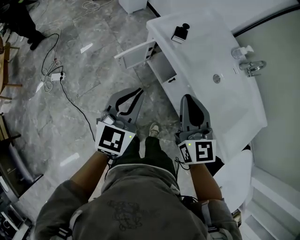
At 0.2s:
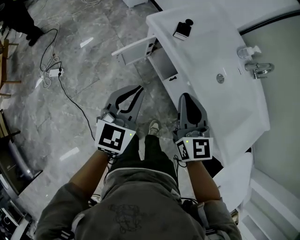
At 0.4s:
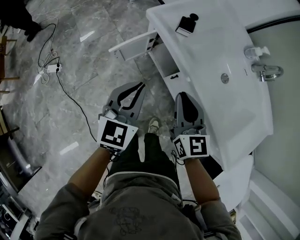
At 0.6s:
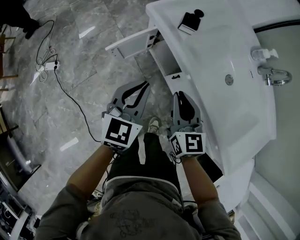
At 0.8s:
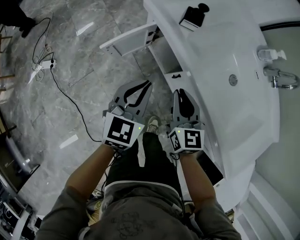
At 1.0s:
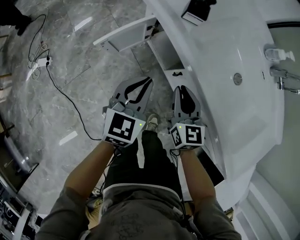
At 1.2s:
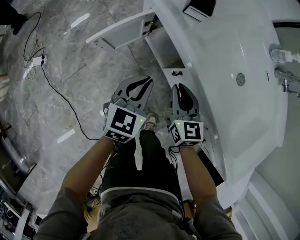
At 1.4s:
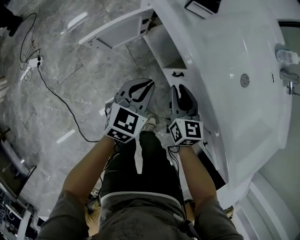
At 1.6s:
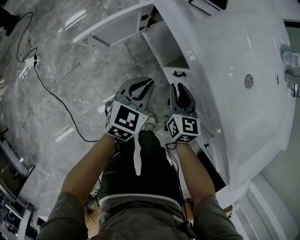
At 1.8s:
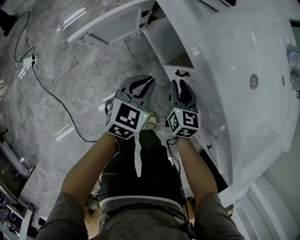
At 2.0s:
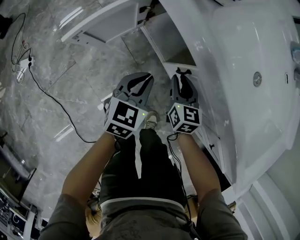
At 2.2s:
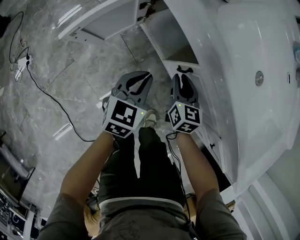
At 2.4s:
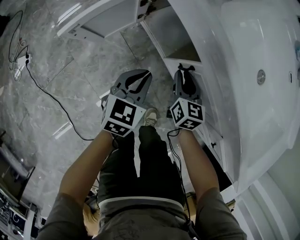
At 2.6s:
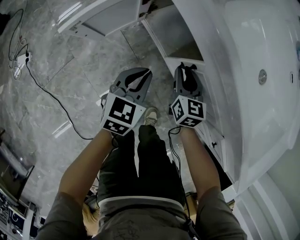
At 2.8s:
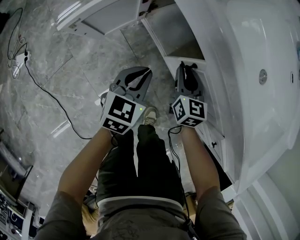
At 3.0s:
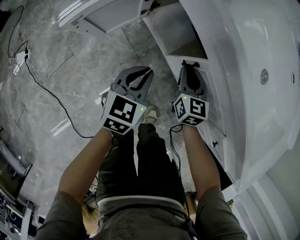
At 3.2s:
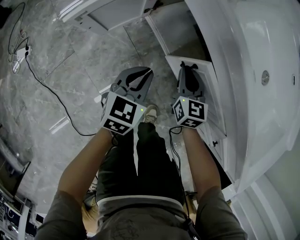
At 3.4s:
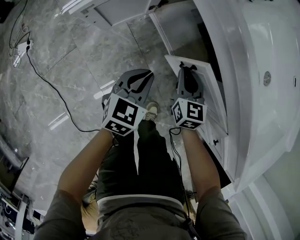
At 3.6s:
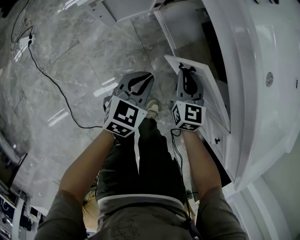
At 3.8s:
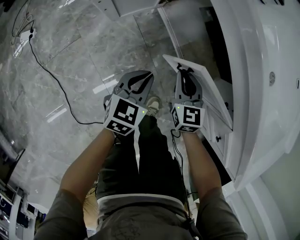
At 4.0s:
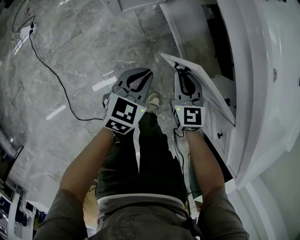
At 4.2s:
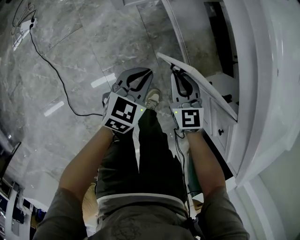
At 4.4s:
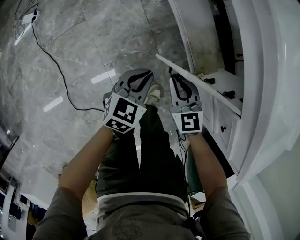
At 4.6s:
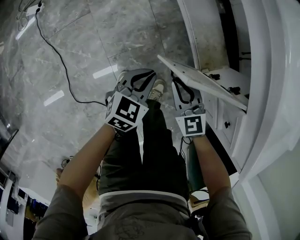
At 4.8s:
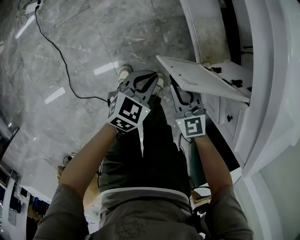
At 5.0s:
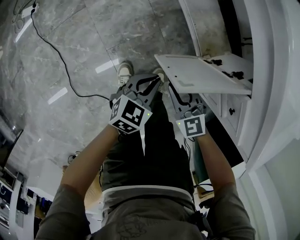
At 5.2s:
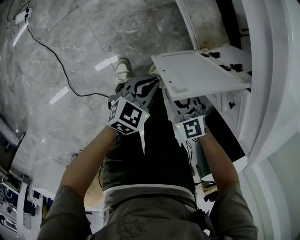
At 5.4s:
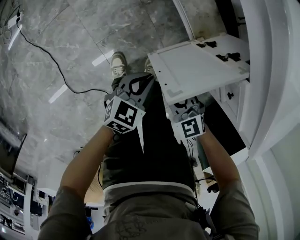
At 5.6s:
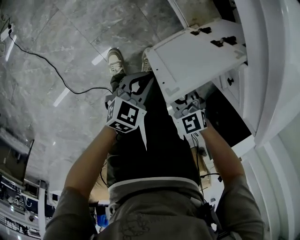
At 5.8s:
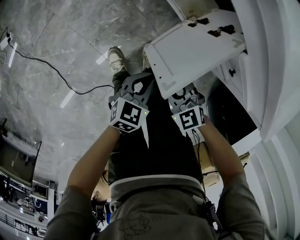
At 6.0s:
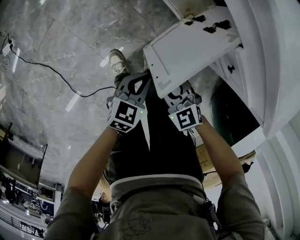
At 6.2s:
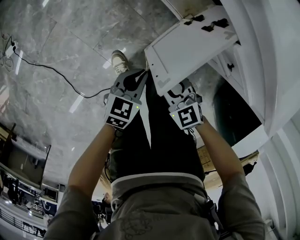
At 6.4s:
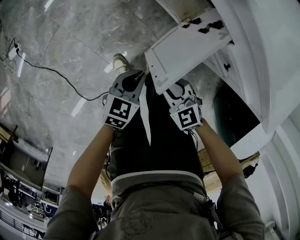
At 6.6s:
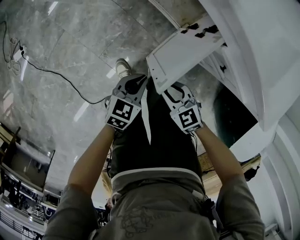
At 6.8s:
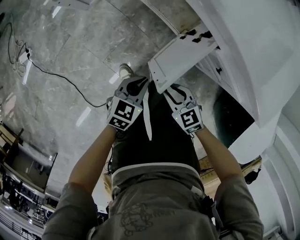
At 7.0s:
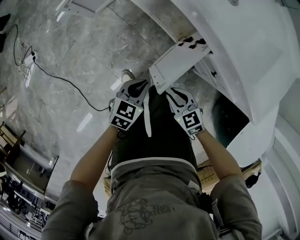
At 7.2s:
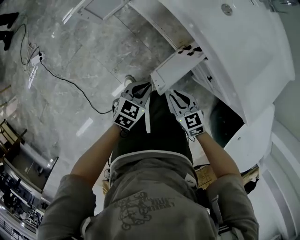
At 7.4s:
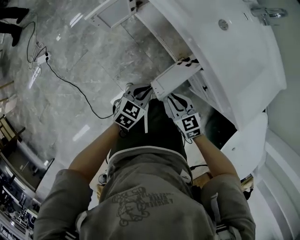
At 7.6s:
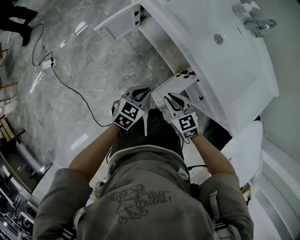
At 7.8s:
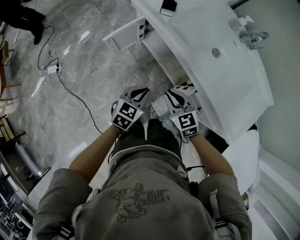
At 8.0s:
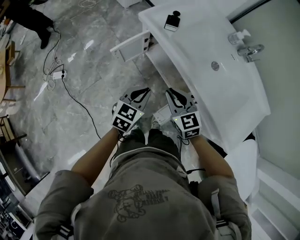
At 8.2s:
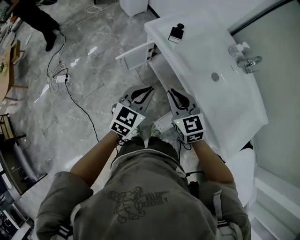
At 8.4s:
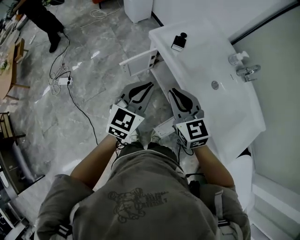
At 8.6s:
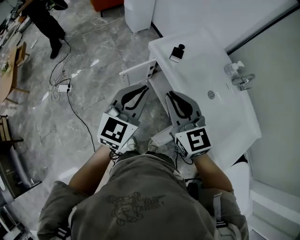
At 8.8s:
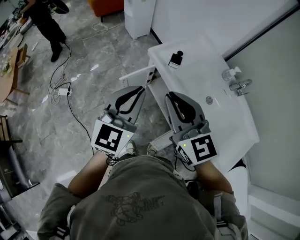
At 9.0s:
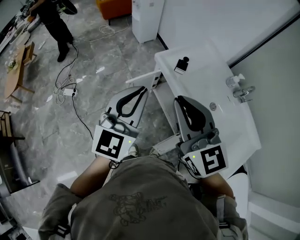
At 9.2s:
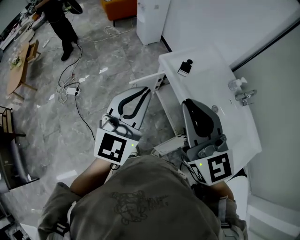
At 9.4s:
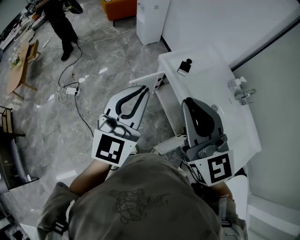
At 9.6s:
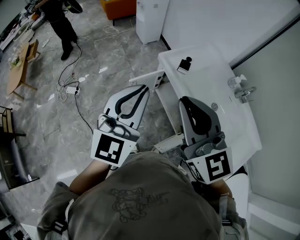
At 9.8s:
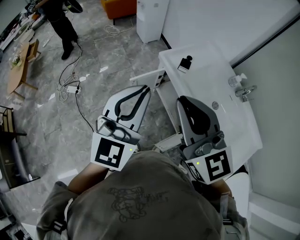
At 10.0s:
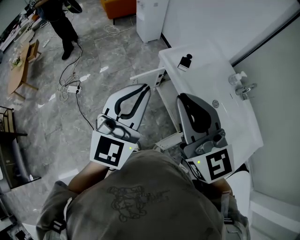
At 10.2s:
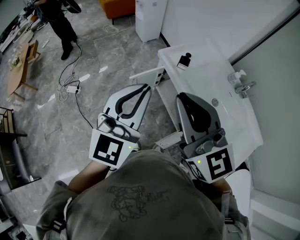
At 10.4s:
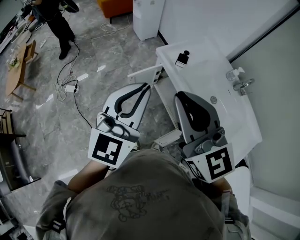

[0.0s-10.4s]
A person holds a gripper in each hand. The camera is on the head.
0.0s to 1.4s: The grippers both shift downward by roughly 35 cm. The left gripper rotates roughly 20 degrees. The right gripper turns by approximately 20 degrees.
1.4s to 3.0s: Both grippers travel together downward, some 10 cm.
3.0s to 4.4s: The grippers both shift backward by approximately 20 cm. The right gripper changes its angle by about 40 degrees.
4.4s to 6.0s: The right gripper shifts approximately 20 cm backward; the left gripper moves backward and to the right, some 20 cm, and rotates some 20 degrees.
6.0s to 7.4s: Both grippers travel together upward, roughly 20 cm.
7.4s to 9.0s: Both grippers travel together upward, some 50 cm. The right gripper angles its fingers upward, by approximately 40 degrees, while the left gripper tips its fingers upward by approximately 40 degrees.
9.0s to 10.4s: Both grippers travel together backward, some 5 cm.

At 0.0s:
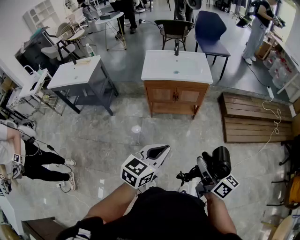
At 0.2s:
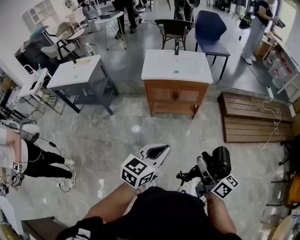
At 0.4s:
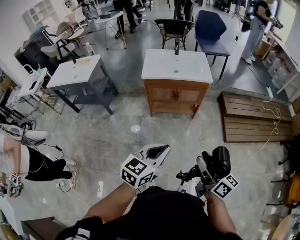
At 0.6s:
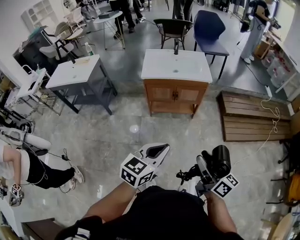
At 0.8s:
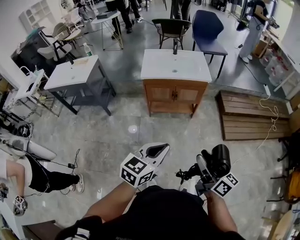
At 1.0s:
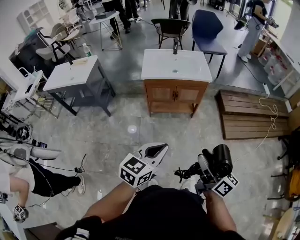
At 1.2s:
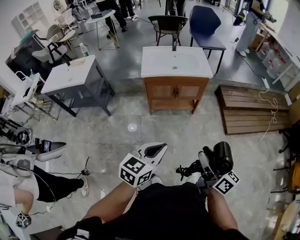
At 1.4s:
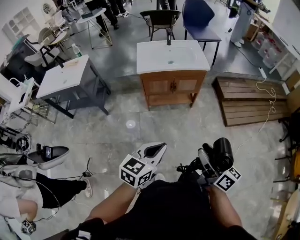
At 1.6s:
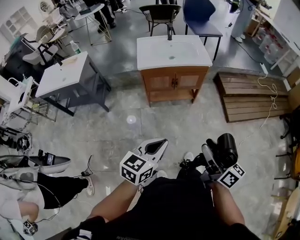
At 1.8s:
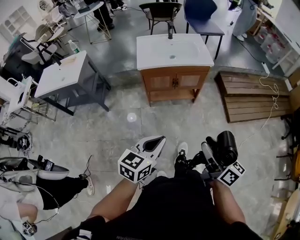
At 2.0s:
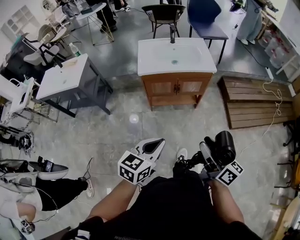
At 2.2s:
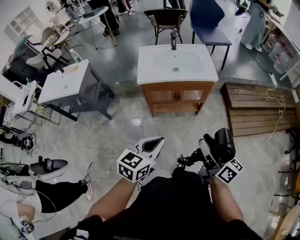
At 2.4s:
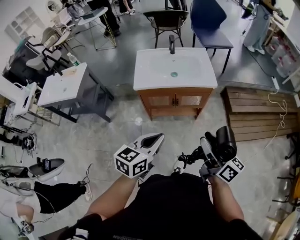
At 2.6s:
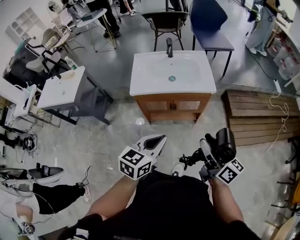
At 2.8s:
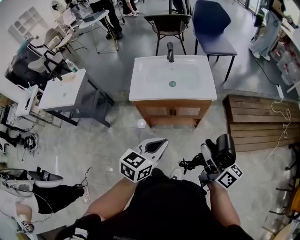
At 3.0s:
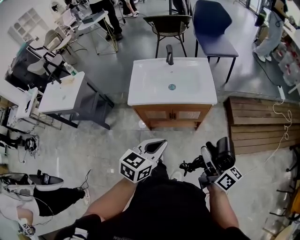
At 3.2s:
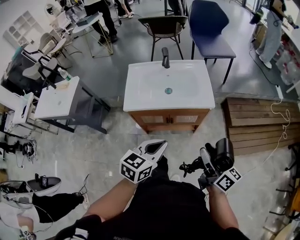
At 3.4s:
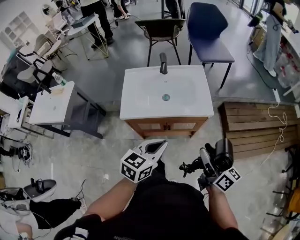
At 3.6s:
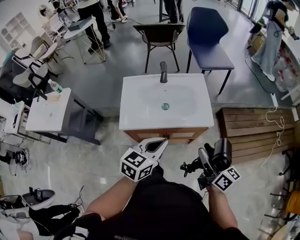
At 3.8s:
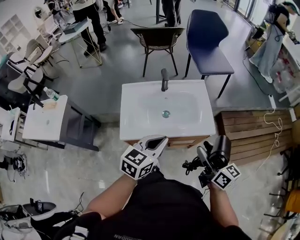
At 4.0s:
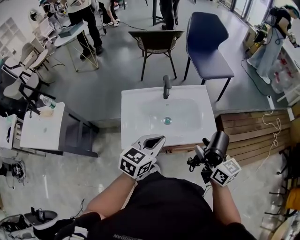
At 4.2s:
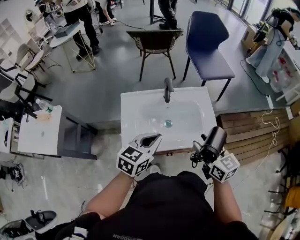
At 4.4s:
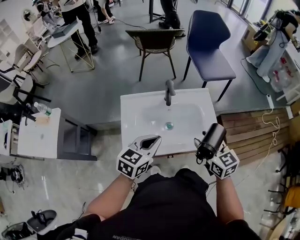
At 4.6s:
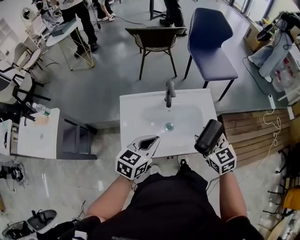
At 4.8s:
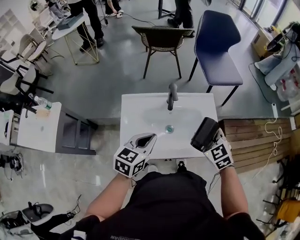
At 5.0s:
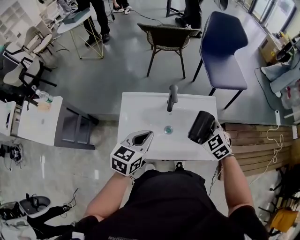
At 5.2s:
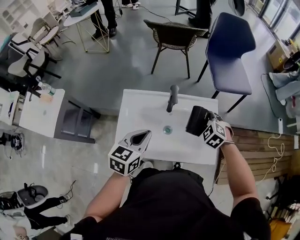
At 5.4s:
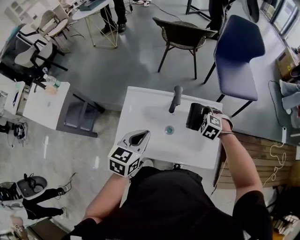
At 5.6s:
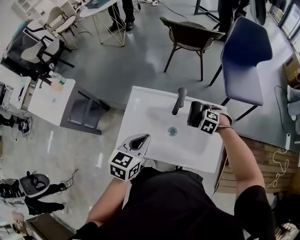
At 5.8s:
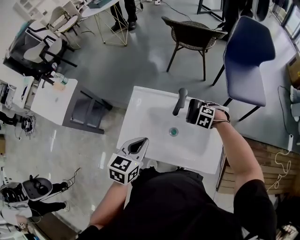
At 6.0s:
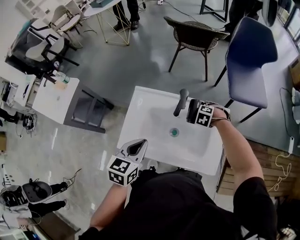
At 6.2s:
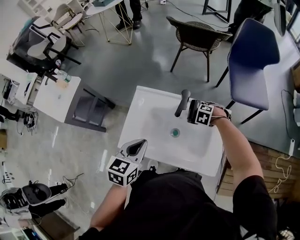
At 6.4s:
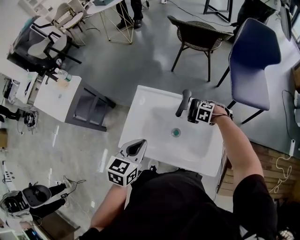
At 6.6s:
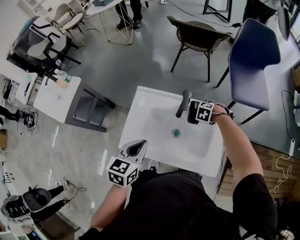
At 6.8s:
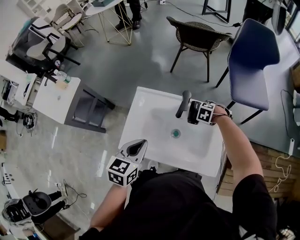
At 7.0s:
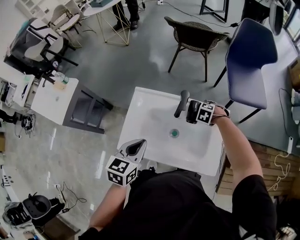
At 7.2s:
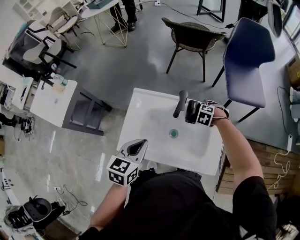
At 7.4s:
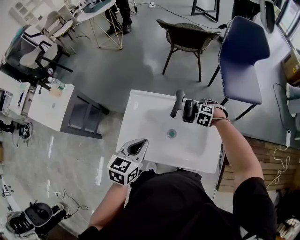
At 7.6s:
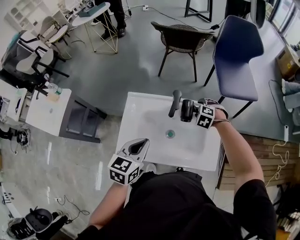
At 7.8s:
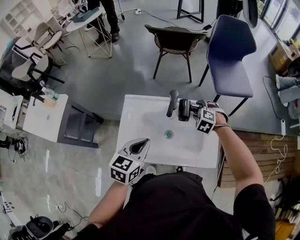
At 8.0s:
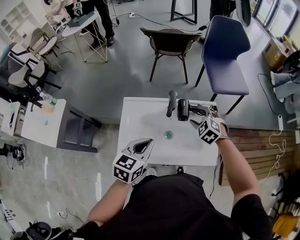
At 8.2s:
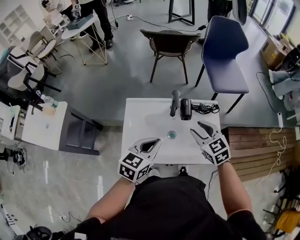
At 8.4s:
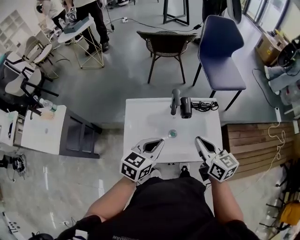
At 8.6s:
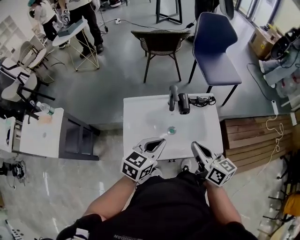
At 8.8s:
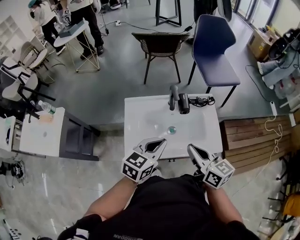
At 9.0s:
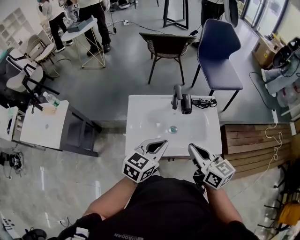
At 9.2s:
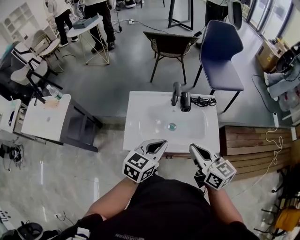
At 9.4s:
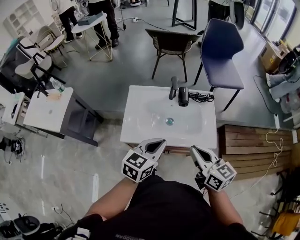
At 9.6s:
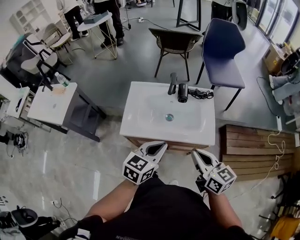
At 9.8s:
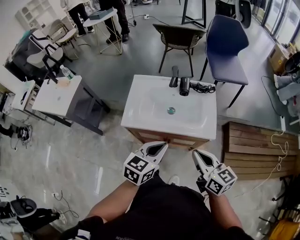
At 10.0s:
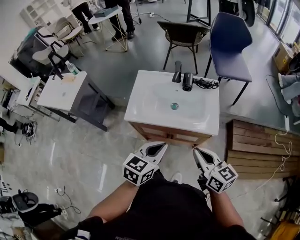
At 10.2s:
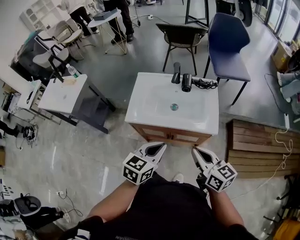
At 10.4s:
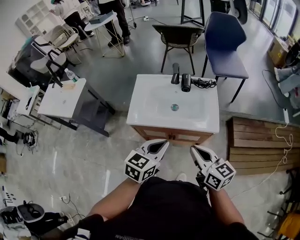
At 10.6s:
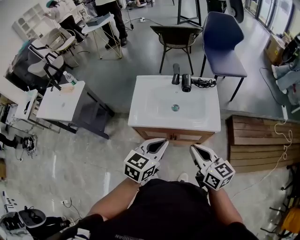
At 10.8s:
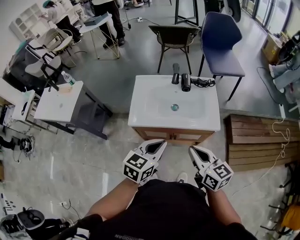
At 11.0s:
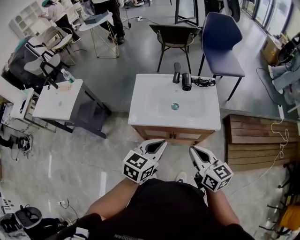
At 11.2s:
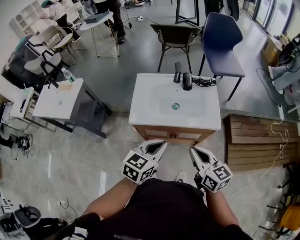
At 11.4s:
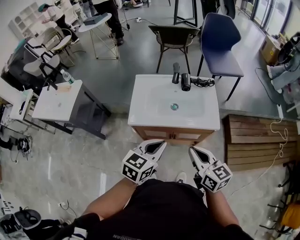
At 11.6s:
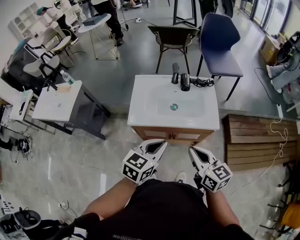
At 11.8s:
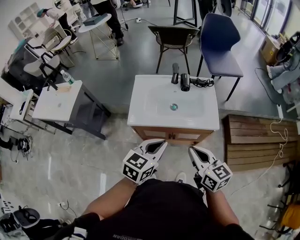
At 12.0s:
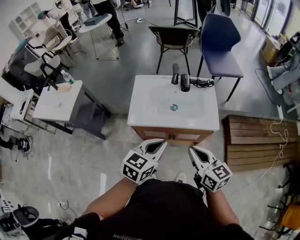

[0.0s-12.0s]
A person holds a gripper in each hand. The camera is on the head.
0.0s to 1.6s: The two grippers go about 10 cm to the left.
1.6s to 3.0s: The two grippers go roughly 35 cm forward.
3.0s to 4.4s: Both grippers move forward and to the left, approximately 35 cm. The right gripper rotates some 50 degrees.
4.4s to 6.0s: The left gripper changes its angle by roughly 30 degrees. Meanwhile the right gripper moves some 35 cm, and points its fingers about 60 degrees further downward.
6.0s to 7.6s: The right gripper goes approximately 5 cm upward.
7.6s to 9.0s: The right gripper travels backward and upward by approximately 35 cm, points its fingers some 60 degrees further upward, and closes its fingers. Meanwhile the left gripper heads backward, covering approximately 5 cm, and swivels approximately 20 degrees.
9.0s to 10.4s: The right gripper moves backward and to the right, approximately 20 cm. Meanwhile the left gripper travels backward by roughly 20 cm.
10.4s to 12.0s: The grippers make only small movements.

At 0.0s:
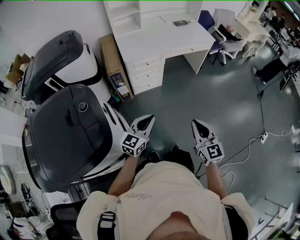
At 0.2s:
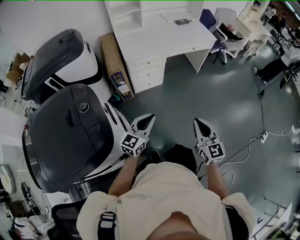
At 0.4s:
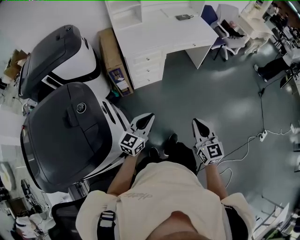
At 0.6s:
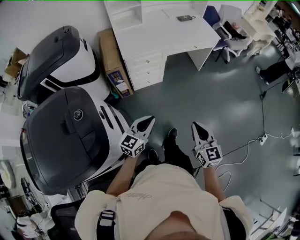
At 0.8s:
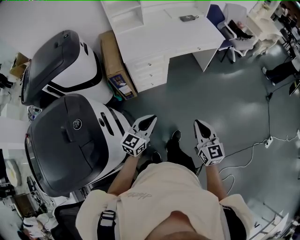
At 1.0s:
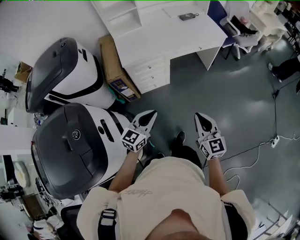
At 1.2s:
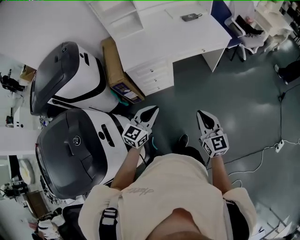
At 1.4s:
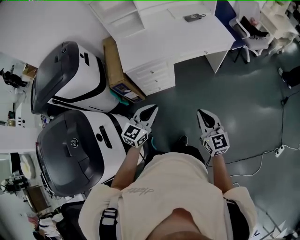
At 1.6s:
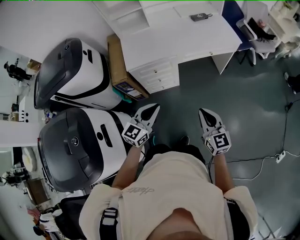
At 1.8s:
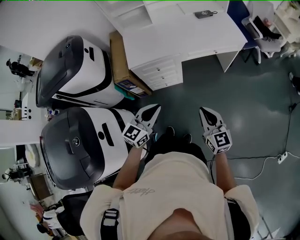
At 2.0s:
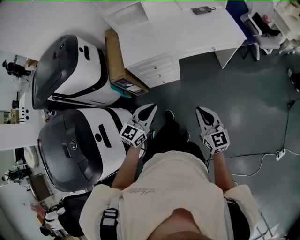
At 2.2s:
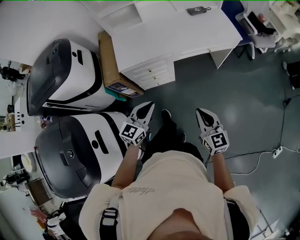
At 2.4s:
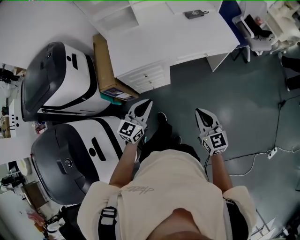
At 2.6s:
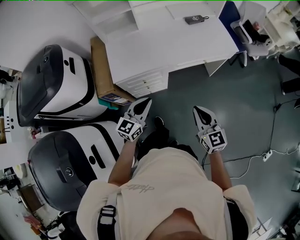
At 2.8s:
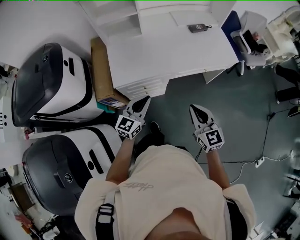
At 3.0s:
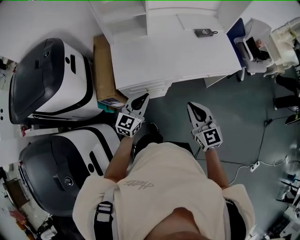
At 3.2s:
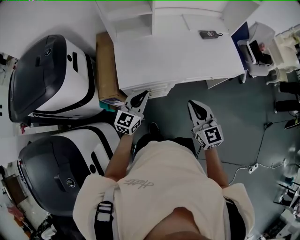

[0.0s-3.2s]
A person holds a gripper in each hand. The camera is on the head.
0.0s to 1.6s: Both grippers move forward, some 30 cm.
1.6s to 3.2s: Both grippers travel together forward and to the left, roughly 30 cm.
